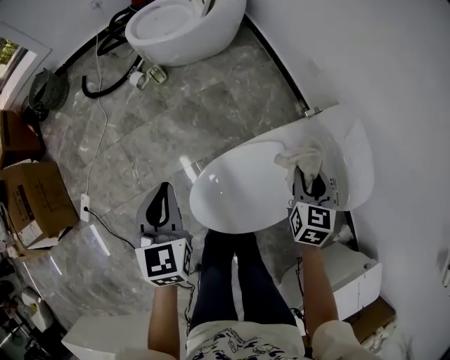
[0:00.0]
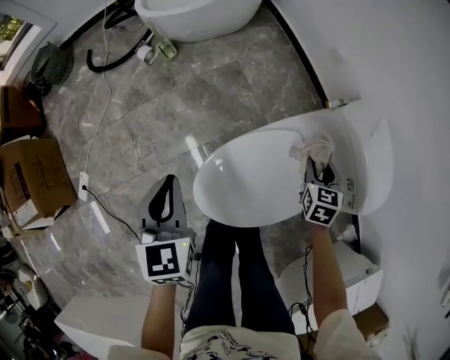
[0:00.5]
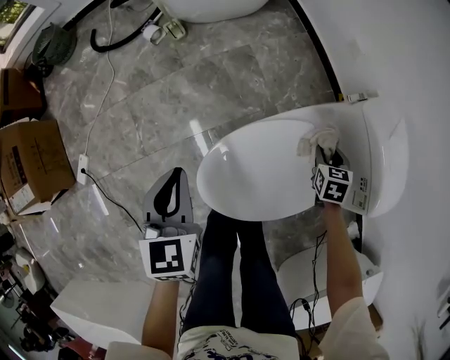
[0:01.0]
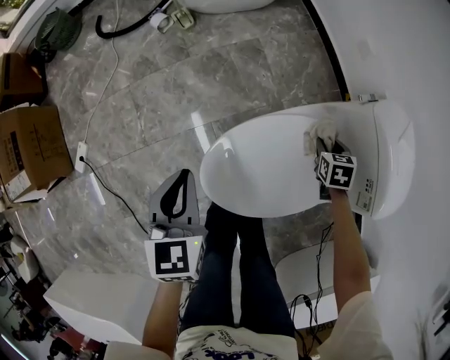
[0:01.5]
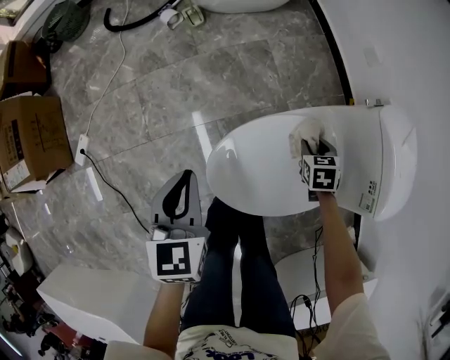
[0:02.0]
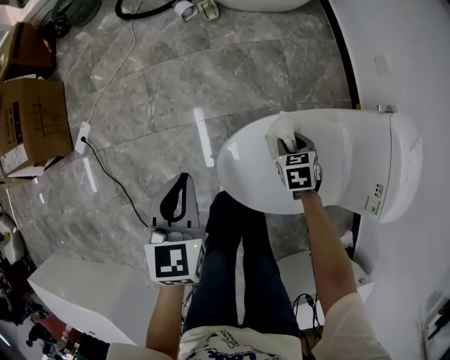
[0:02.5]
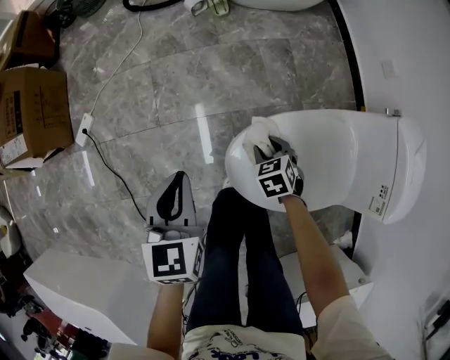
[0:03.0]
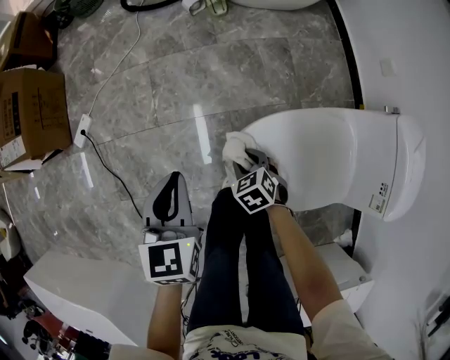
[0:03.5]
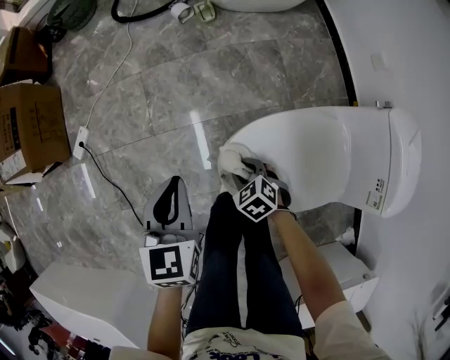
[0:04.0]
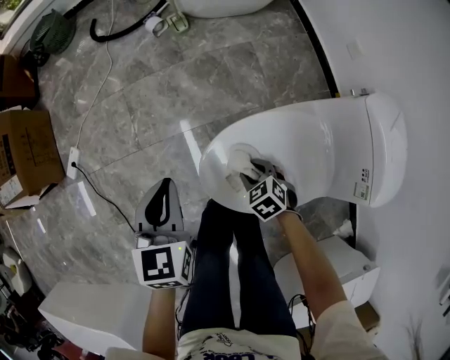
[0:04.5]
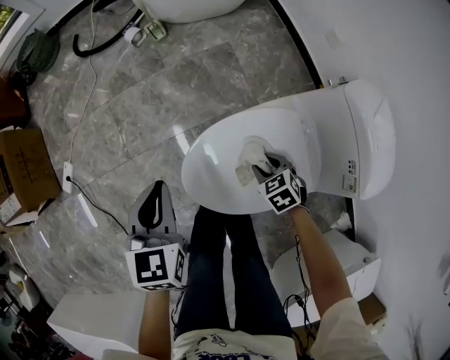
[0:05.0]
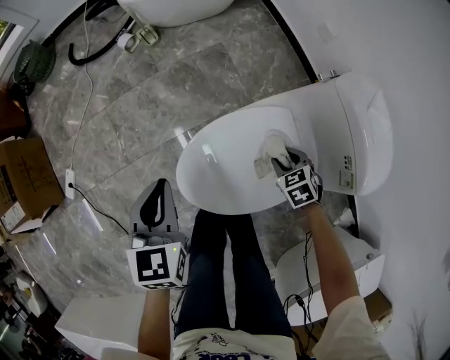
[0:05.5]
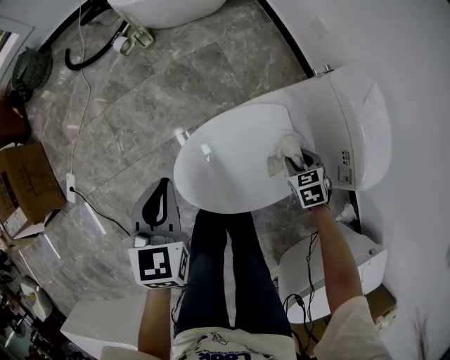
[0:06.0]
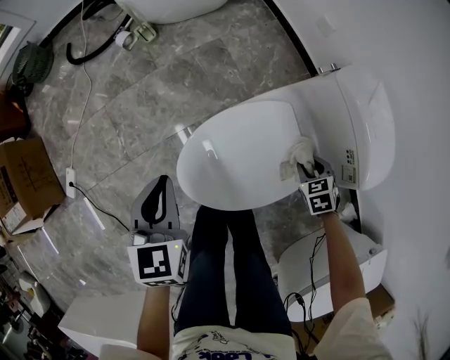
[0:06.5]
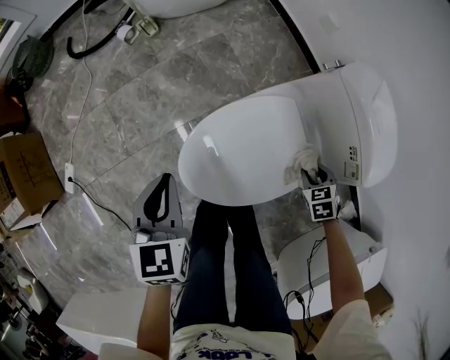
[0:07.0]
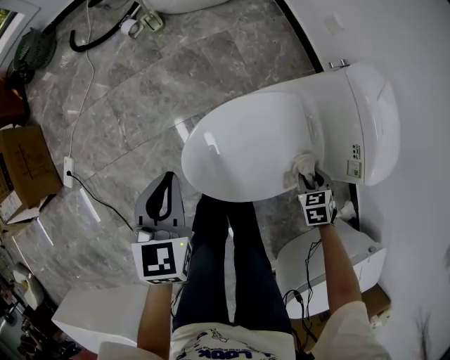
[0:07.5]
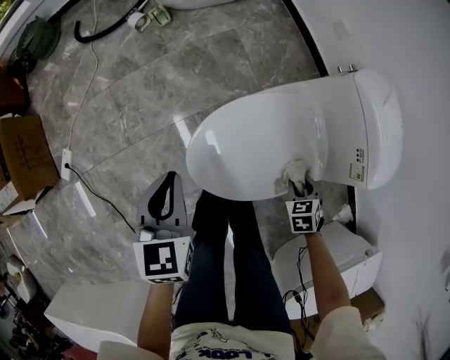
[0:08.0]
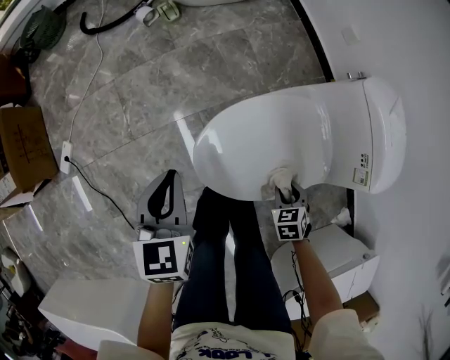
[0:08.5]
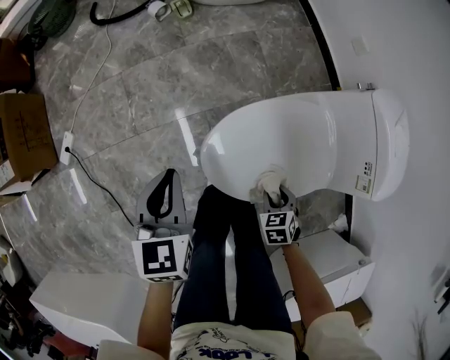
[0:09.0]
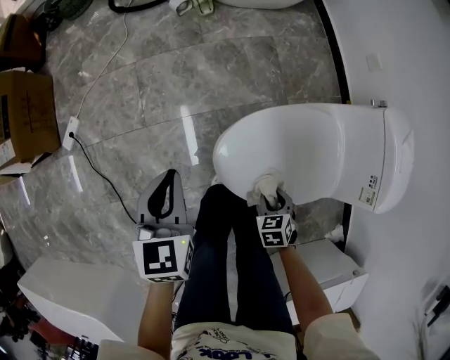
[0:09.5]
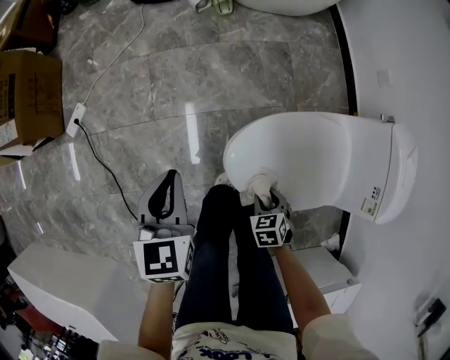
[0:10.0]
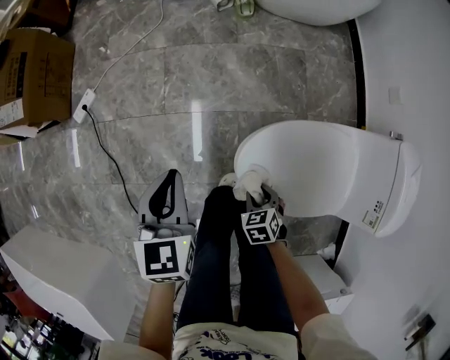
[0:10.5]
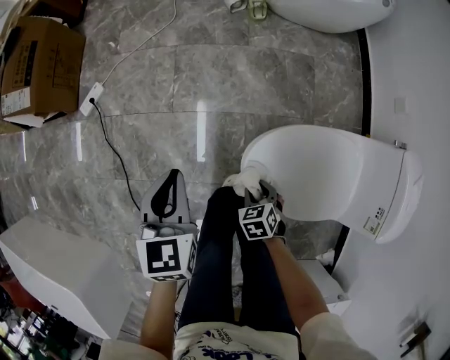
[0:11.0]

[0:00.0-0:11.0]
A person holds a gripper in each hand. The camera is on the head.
0:00.0 to 0:02.0: The right gripper goes about 25 cm downward, and rotates about 30 degrees. Meanwhile the left gripper travels downward and backward by some 10 cm.
0:02.0 to 0:03.5: The right gripper moves about 30 cm, and changes its angle by about 40 degrees. Meanwhile the left gripper moves roughly 10 cm.
0:03.5 to 0:05.5: The right gripper moves about 30 cm, and rotates approximately 20 degrees. The left gripper ends up about 15 cm from where it was.
0:05.5 to 0:07.5: The right gripper shifts about 10 cm backward and to the right.
0:07.5 to 0:09.0: The left gripper shifts approximately 10 cm to the left. Meanwhile the right gripper moves to the left, some 15 cm.
0:09.0 to 0:11.0: The left gripper changes place by some 15 cm, while the right gripper ends up some 20 cm from where it was, and rotates roughly 20 degrees.

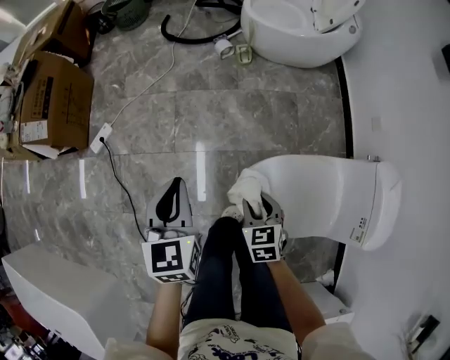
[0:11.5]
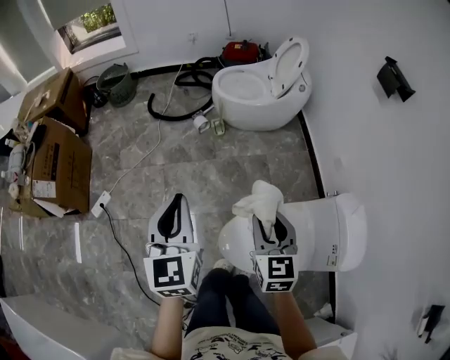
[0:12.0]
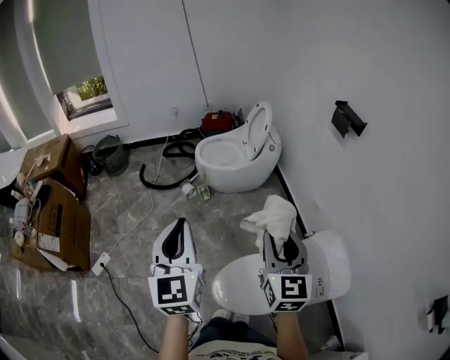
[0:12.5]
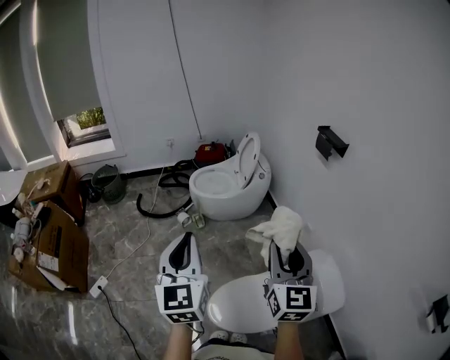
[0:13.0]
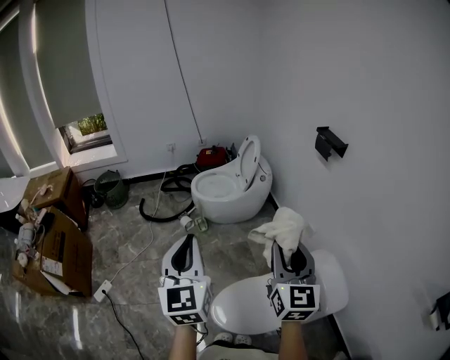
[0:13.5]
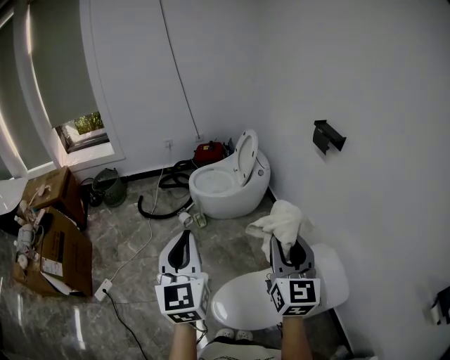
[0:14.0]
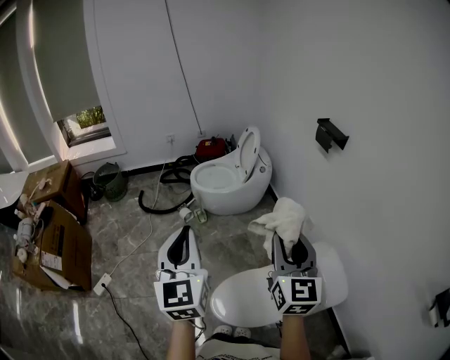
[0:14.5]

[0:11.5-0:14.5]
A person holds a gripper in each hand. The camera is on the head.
0:11.5 to 0:13.0: The right gripper goes some 50 cm upward, and tilts its fingers roughly 50 degrees upward. Meanwhile the left gripper goes some 40 cm upward and to the right, and rotates roughly 30 degrees.
0:13.0 to 0:14.5: The two grippers keep their place.

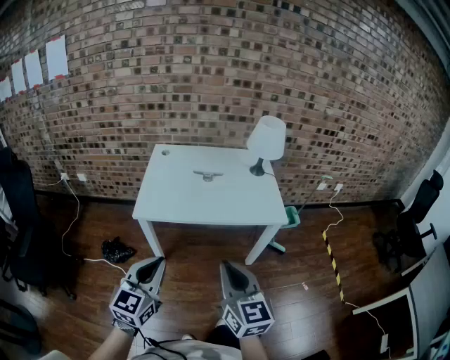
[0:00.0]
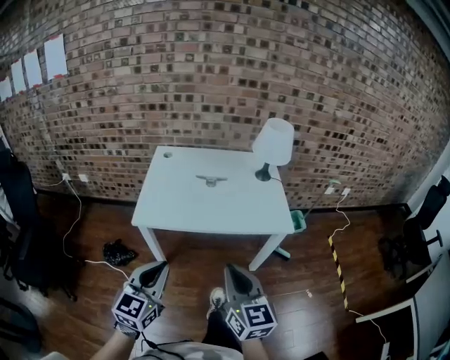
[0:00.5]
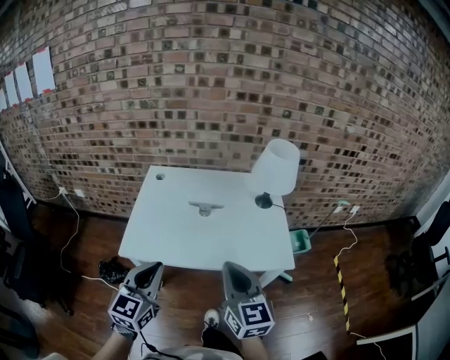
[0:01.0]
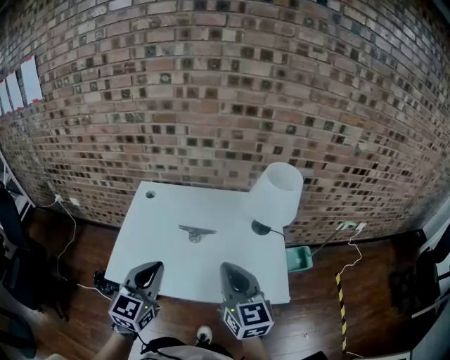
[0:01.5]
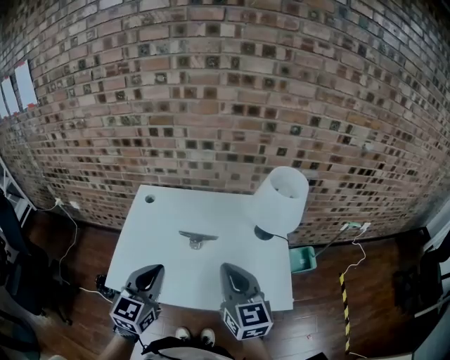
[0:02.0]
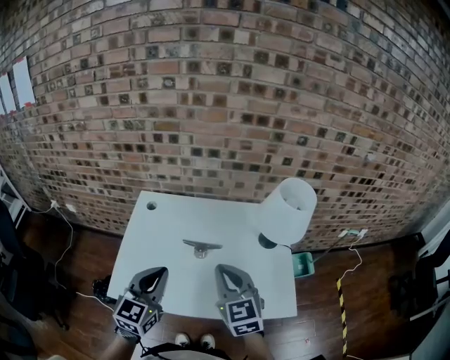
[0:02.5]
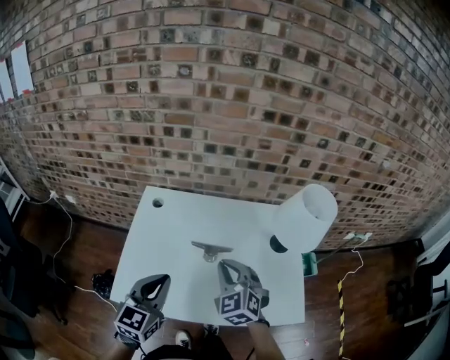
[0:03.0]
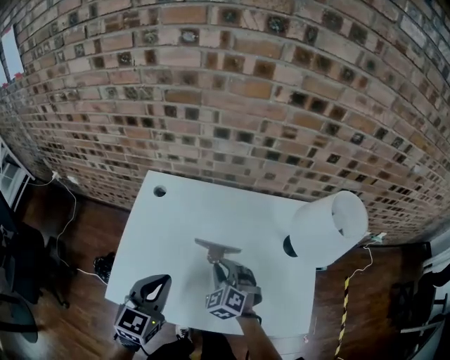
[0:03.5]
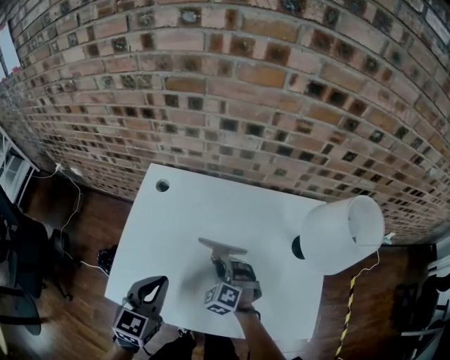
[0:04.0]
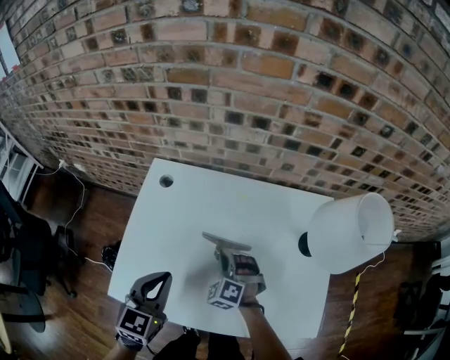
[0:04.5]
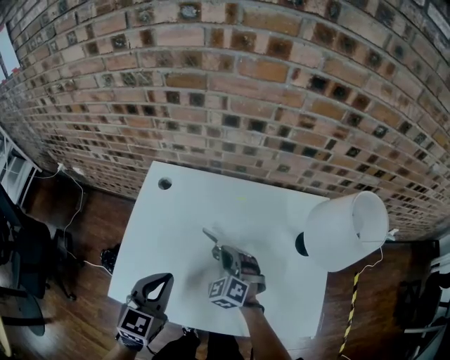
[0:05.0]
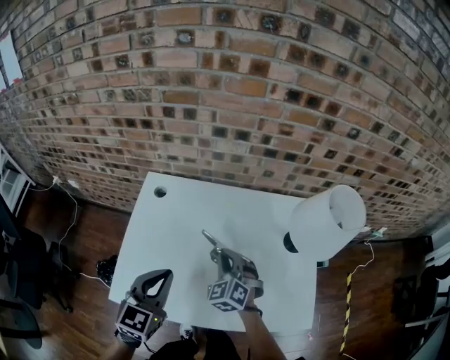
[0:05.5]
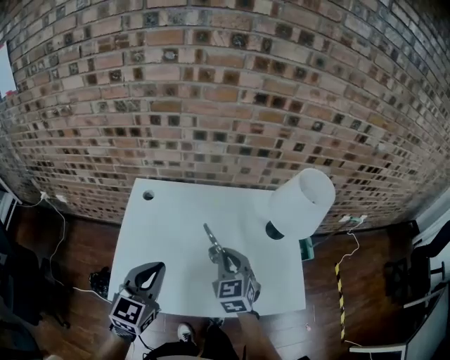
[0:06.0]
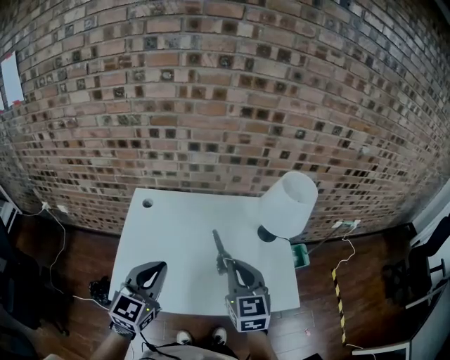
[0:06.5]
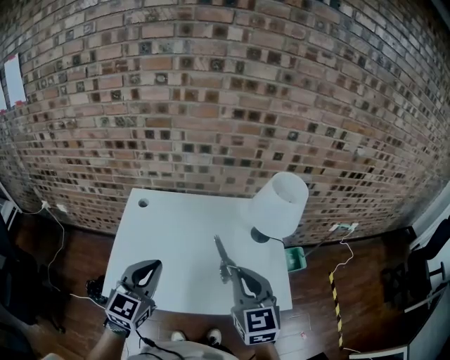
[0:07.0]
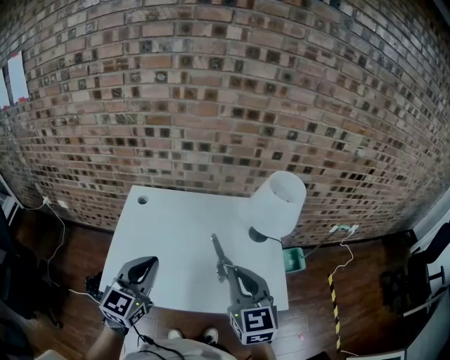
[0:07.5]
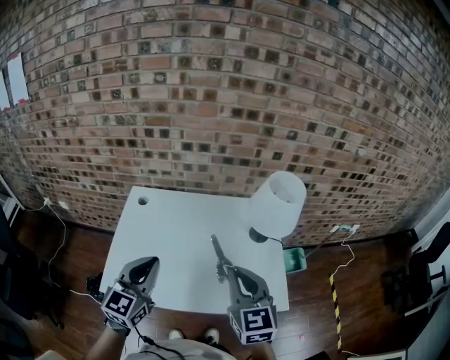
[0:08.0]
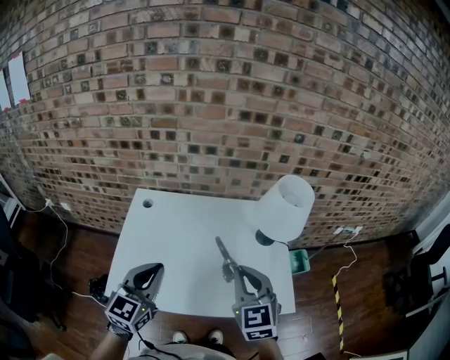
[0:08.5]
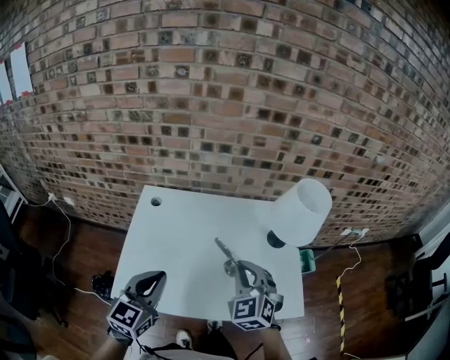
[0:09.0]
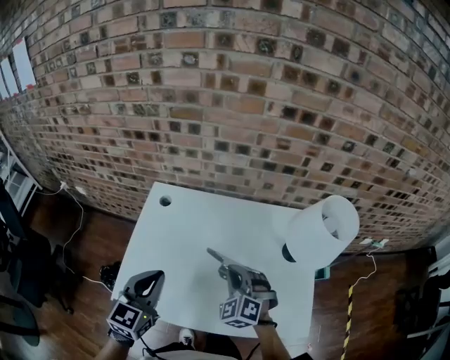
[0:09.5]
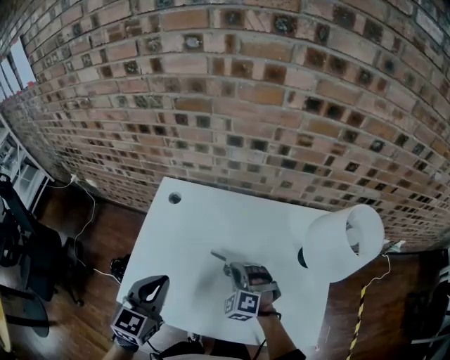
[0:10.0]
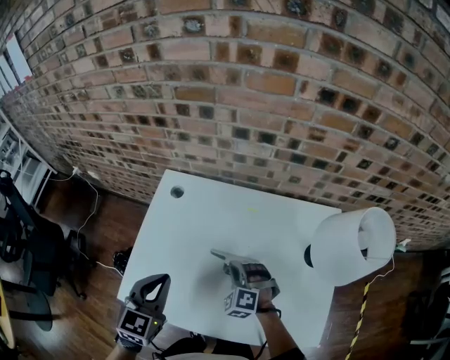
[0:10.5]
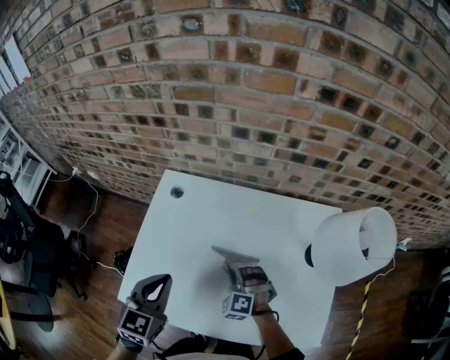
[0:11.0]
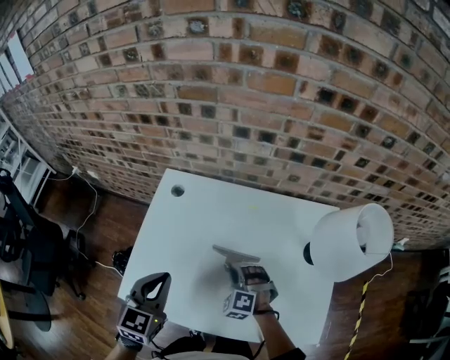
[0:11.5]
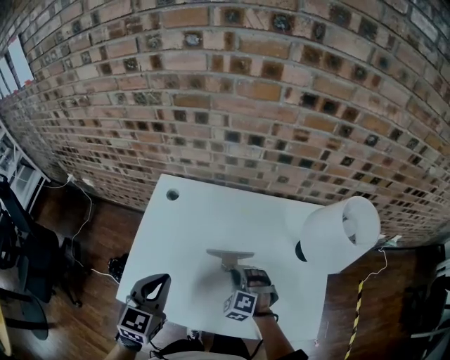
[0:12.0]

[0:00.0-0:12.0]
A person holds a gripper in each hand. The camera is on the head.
0:00.0 to 0:02.0: Both grippers travel together forward, some 40 cm.
0:02.0 to 0:04.0: The left gripper is displaced downward, forward and to the left by some 15 cm. The right gripper is displaced downward, forward and to the left by about 35 cm, tilts its fingers approximately 40 degrees downward, and opens its fingers.
0:04.0 to 0:06.0: The left gripper shifts about 10 cm upward. The right gripper moves upward, roughly 15 cm, rotates around the line of its fingers by some 40 degrees, clockwise from behind, and closes.
0:06.0 to 0:08.0: The left gripper moves upward, about 5 cm, while the right gripper is displaced upward, backward and to the right by about 20 cm.
0:08.0 to 0:10.0: The right gripper is displaced downward, forward and to the left by some 35 cm, and rotates around the line of its fingers by approximately 50 degrees, counterclockwise from behind. Meanwhile the left gripper moves downward, forward and to the left, roughly 15 cm, and changes its angle by about 20 degrees.
0:10.0 to 0:12.0: The right gripper changes place by approximately 5 cm.
